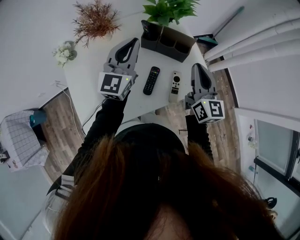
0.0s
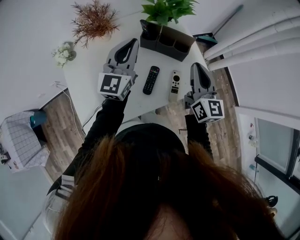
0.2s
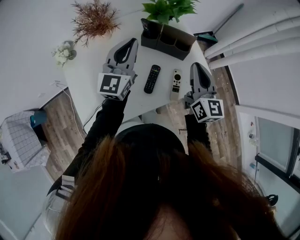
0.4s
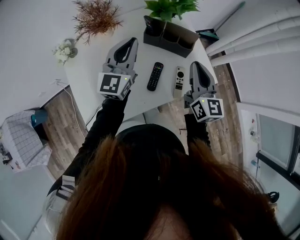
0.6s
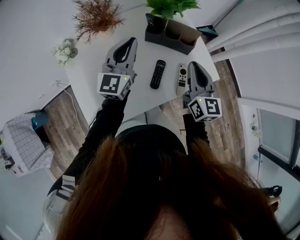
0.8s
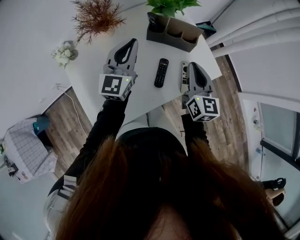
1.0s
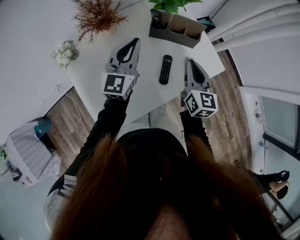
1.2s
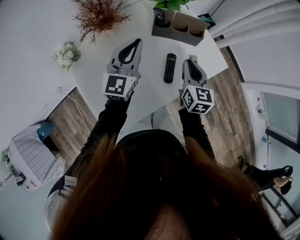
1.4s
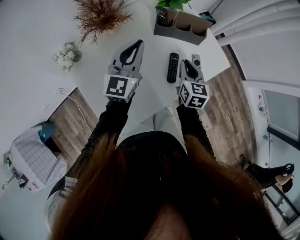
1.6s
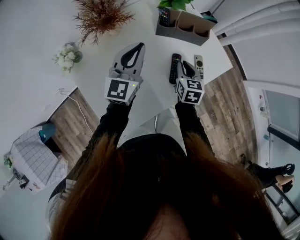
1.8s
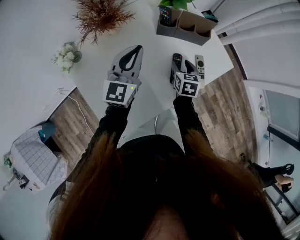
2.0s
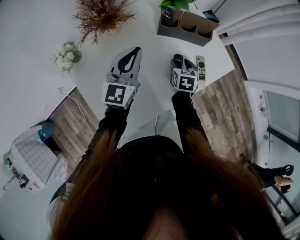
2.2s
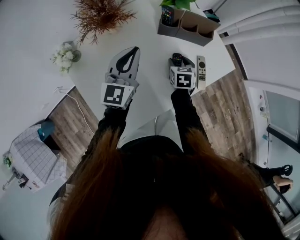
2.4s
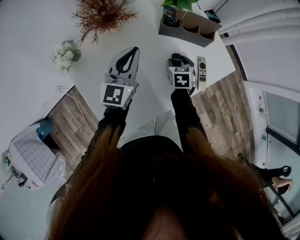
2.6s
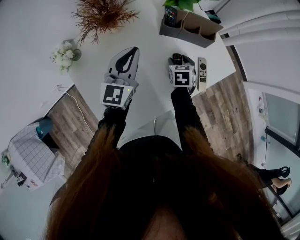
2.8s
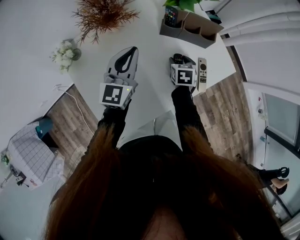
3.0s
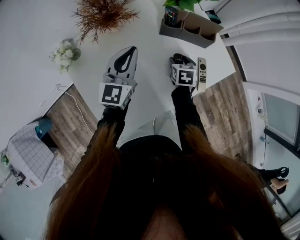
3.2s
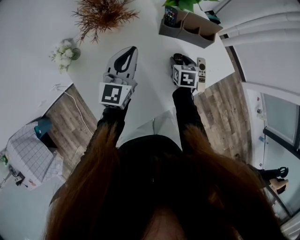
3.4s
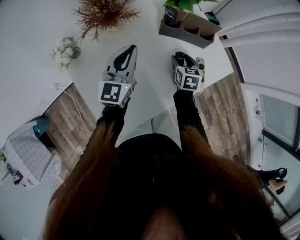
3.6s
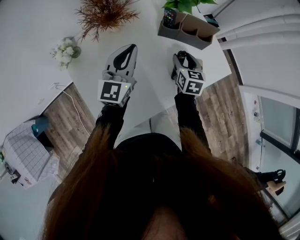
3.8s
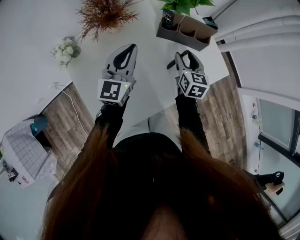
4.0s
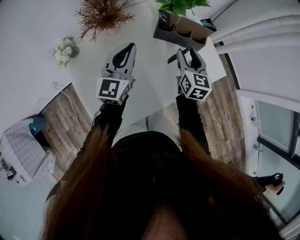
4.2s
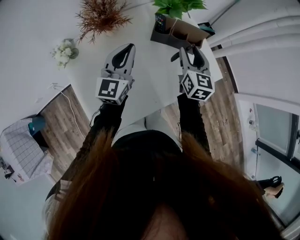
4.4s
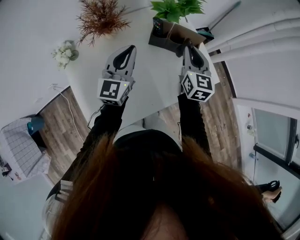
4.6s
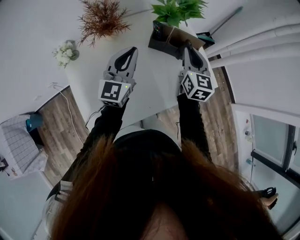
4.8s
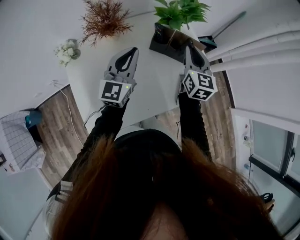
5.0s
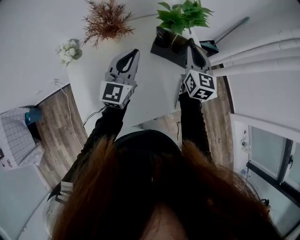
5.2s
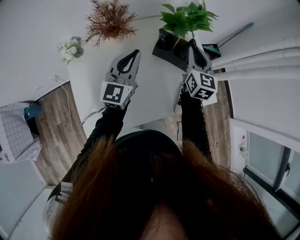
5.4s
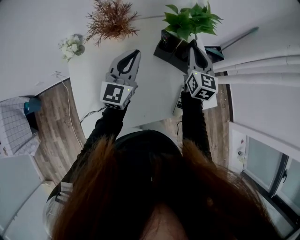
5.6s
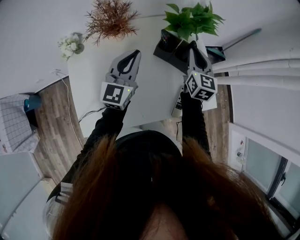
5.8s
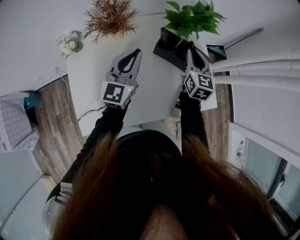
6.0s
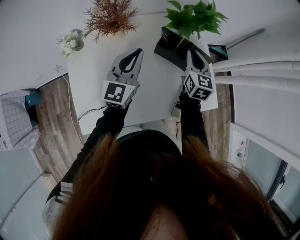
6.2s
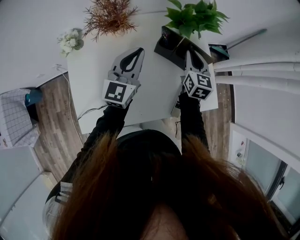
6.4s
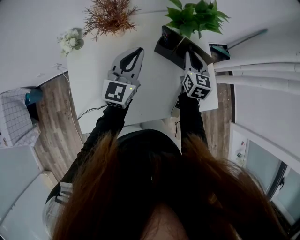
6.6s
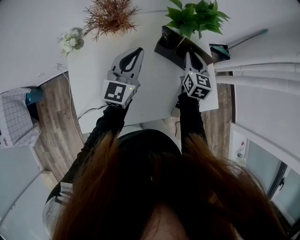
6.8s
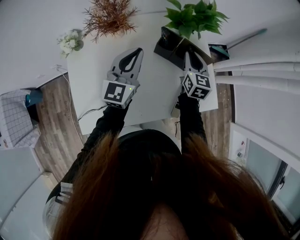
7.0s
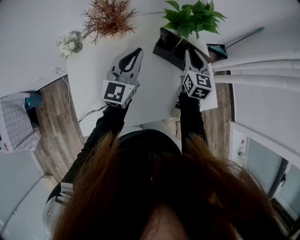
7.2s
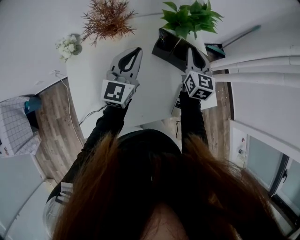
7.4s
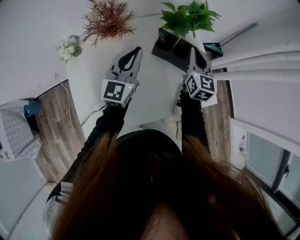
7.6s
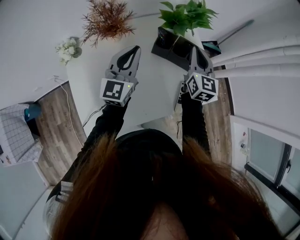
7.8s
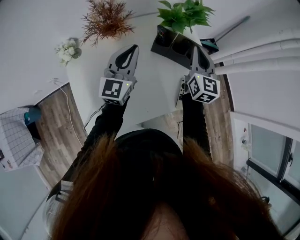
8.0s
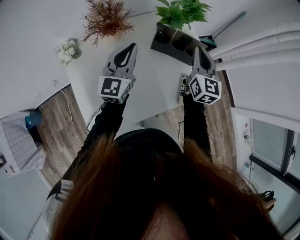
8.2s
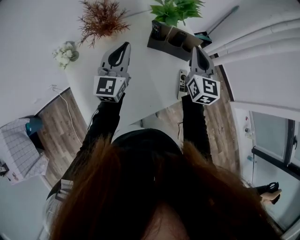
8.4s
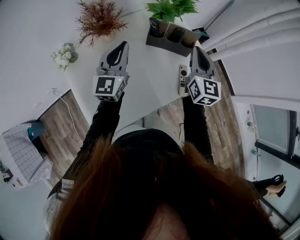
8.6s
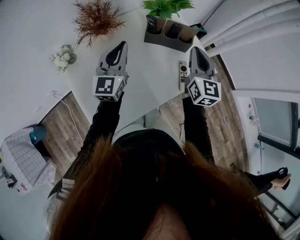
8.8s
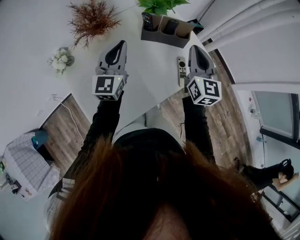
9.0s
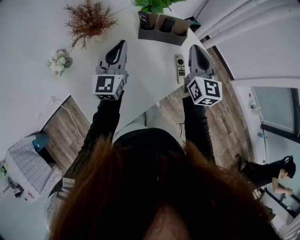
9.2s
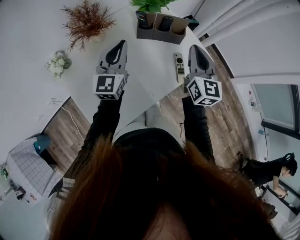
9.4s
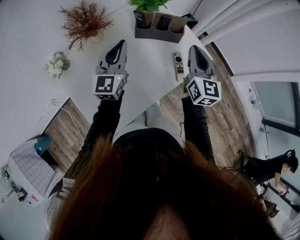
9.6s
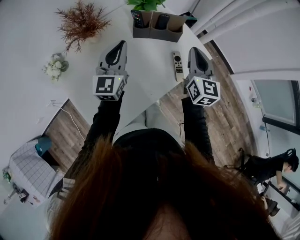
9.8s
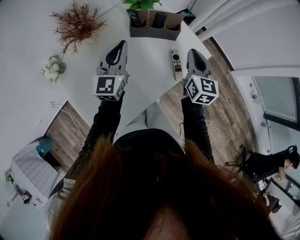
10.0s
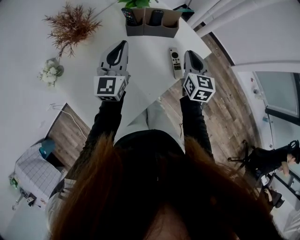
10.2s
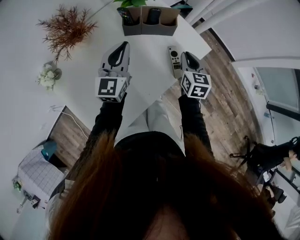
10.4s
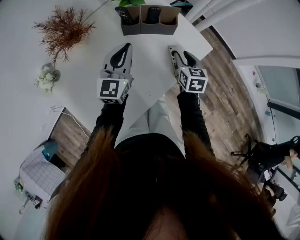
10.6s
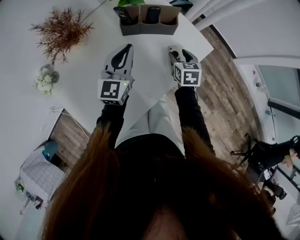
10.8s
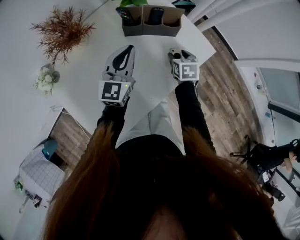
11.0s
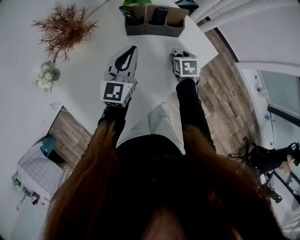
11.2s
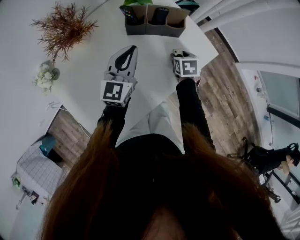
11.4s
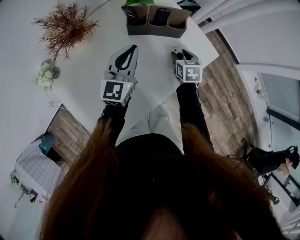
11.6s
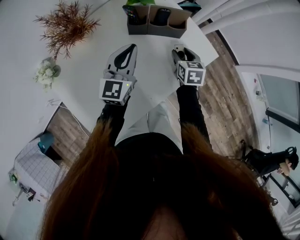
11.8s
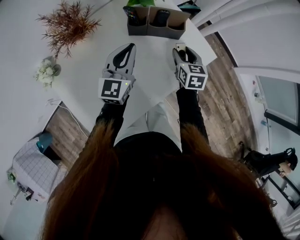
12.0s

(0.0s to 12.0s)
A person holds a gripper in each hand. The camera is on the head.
0.0s - 1.6s: The right gripper goes some 20 cm downward and to the left, and rotates approximately 30 degrees, while the left gripper goes approximately 5 cm to the left.
1.6s - 3.0s: The left gripper moves some 5 cm; the right gripper is displaced downward and forward by roughly 15 cm, rotates approximately 30 degrees, and opens.
3.0s - 4.4s: The left gripper shifts by approximately 5 cm, while the right gripper shifts roughly 20 cm upward, and tips its fingers upward by some 40 degrees.
4.4s - 6.0s: The right gripper heads forward, covering some 10 cm, and closes.
6.0s - 7.6s: The grippers stay close to where they were, moving slightly.
7.6s - 9.0s: The left gripper ends up approximately 5 cm from where it was, while the right gripper travels backward by some 15 cm.
9.0s - 10.4s: The left gripper travels to the right by some 5 cm; the right gripper goes about 15 cm downward, and swivels approximately 30 degrees.
10.4s - 12.0s: The right gripper moves forward, some 5 cm, reaches some 10 cm downward, then returns, and opens up.

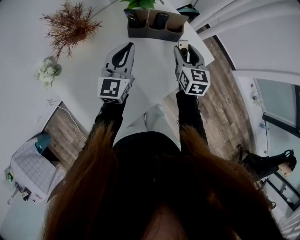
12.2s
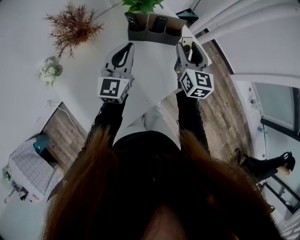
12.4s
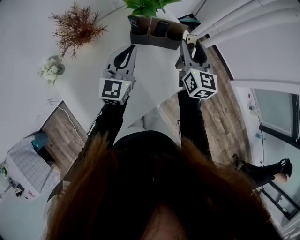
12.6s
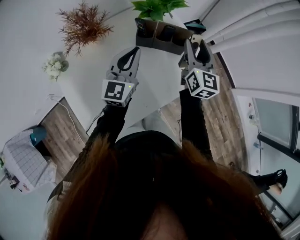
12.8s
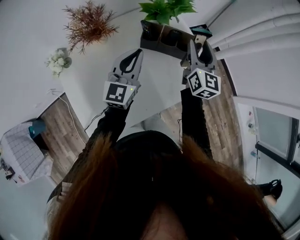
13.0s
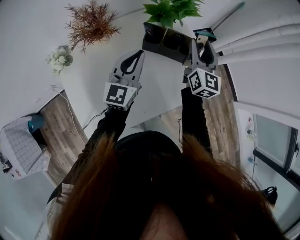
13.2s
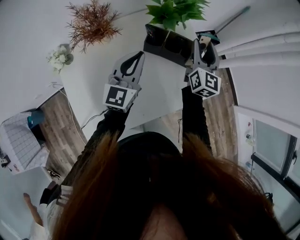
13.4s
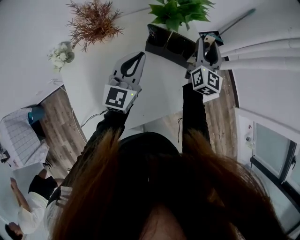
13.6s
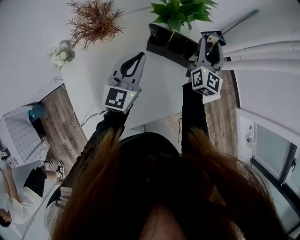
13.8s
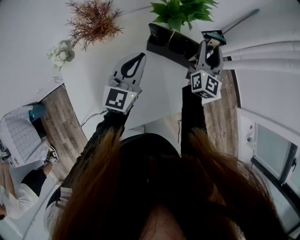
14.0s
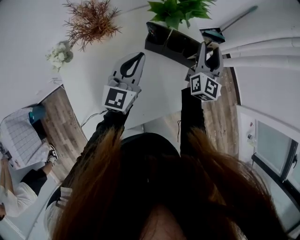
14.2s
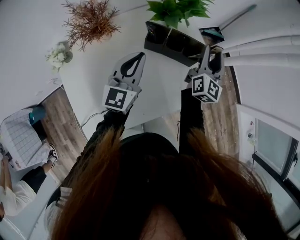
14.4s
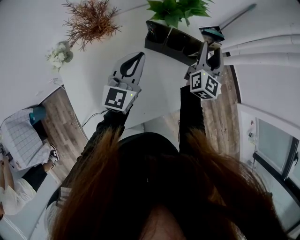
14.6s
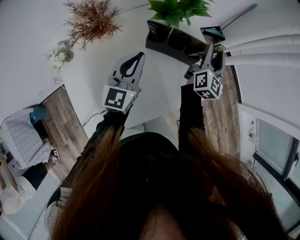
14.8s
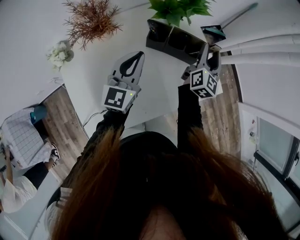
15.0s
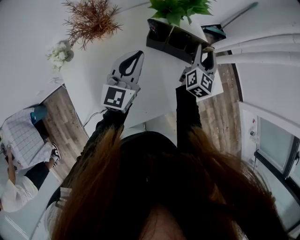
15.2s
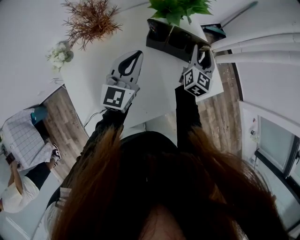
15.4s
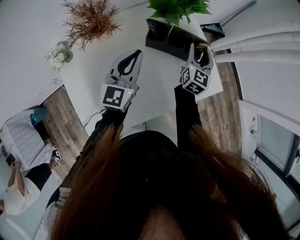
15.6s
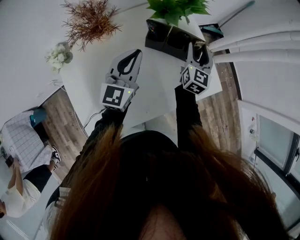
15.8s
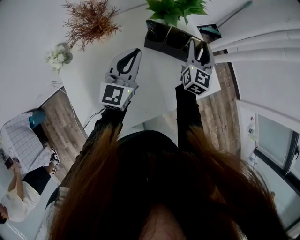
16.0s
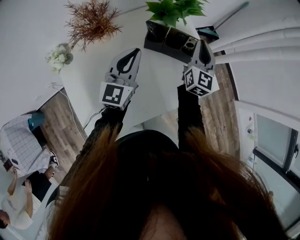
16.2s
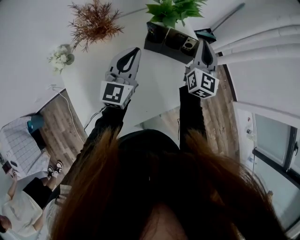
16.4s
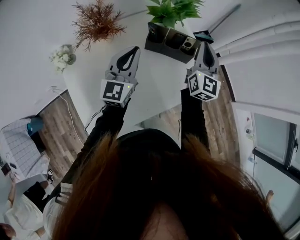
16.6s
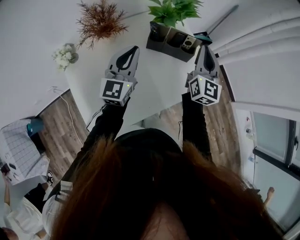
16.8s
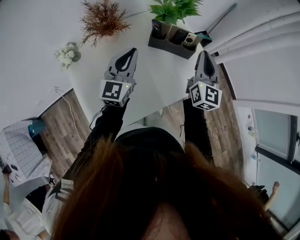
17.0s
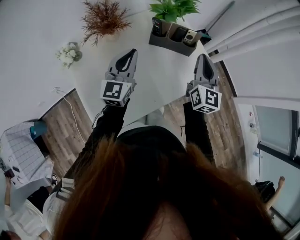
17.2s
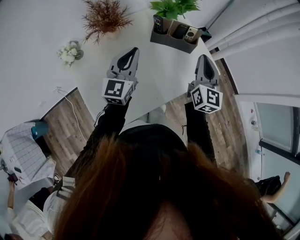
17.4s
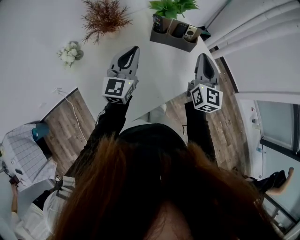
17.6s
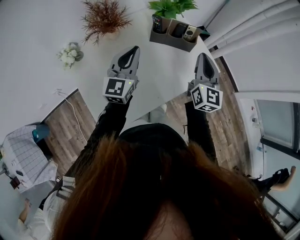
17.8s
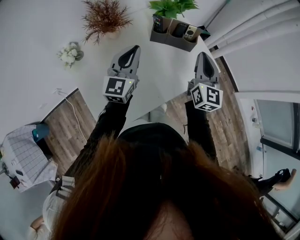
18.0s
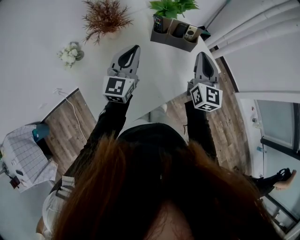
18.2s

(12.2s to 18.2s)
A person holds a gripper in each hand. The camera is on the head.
12.2s - 13.8s: The right gripper is displaced forward and upward by about 15 cm, and swivels roughly 30 degrees.
13.8s - 15.2s: The right gripper goes some 5 cm downward.
15.2s - 16.6s: The left gripper shifts by about 5 cm, while the right gripper moves upward and backward, about 15 cm, and closes up.
16.6s - 18.2s: The left gripper heads backward, covering approximately 5 cm. The right gripper moves backward, some 15 cm.

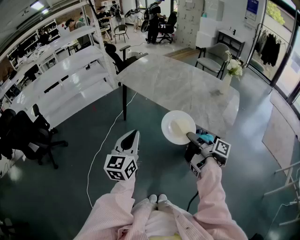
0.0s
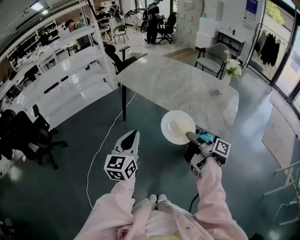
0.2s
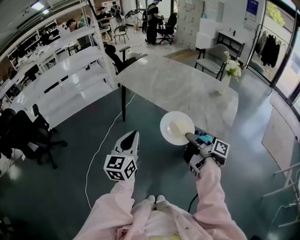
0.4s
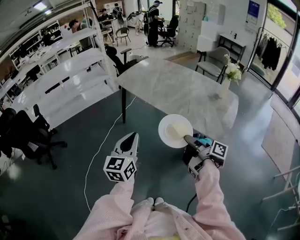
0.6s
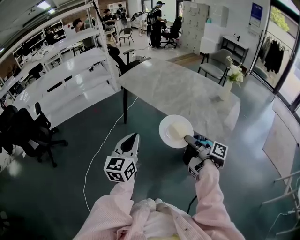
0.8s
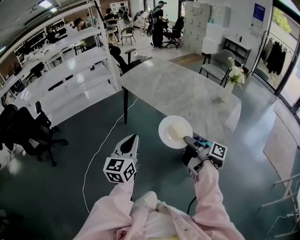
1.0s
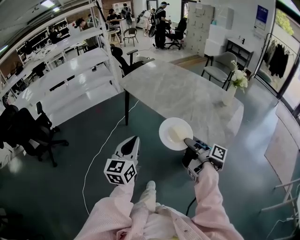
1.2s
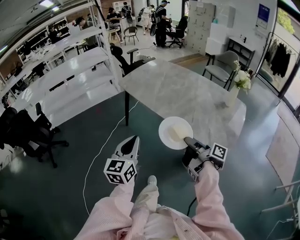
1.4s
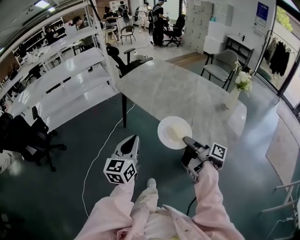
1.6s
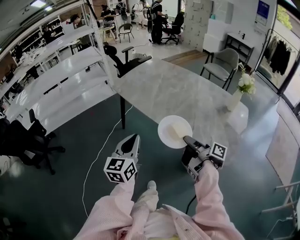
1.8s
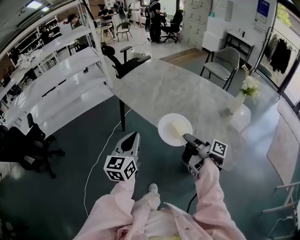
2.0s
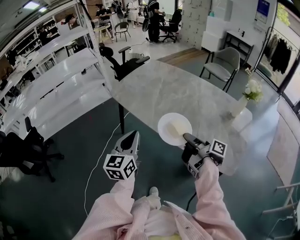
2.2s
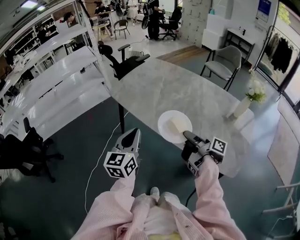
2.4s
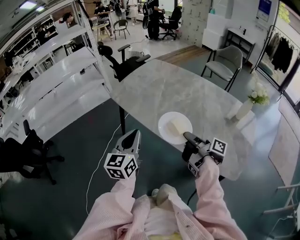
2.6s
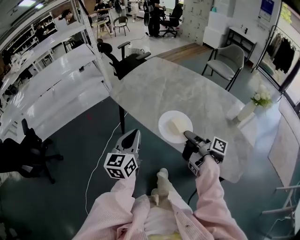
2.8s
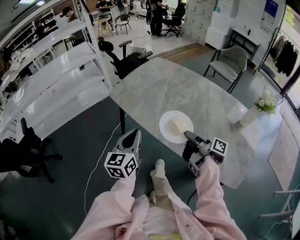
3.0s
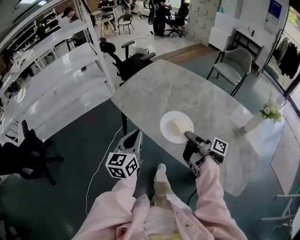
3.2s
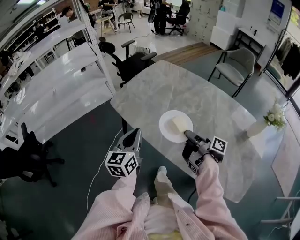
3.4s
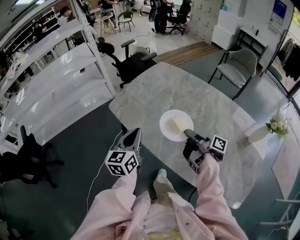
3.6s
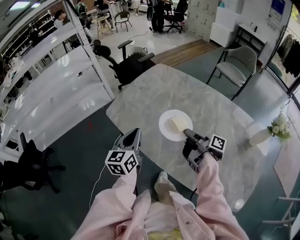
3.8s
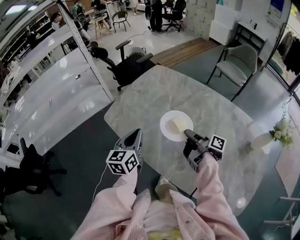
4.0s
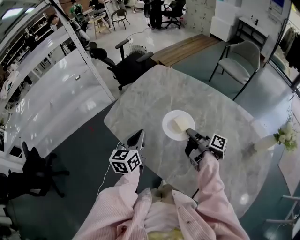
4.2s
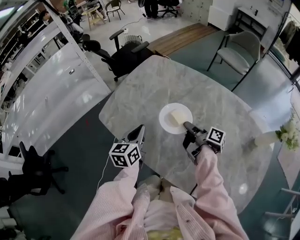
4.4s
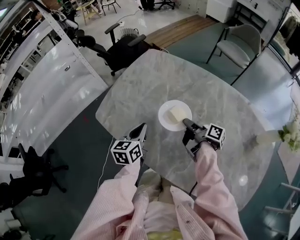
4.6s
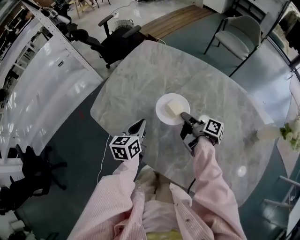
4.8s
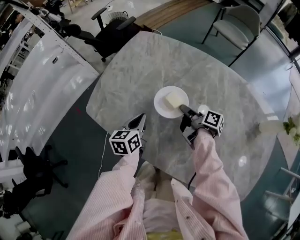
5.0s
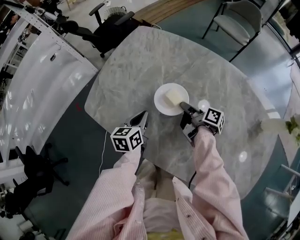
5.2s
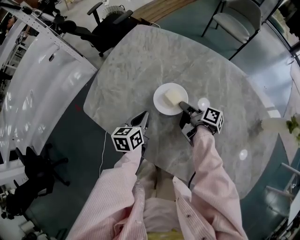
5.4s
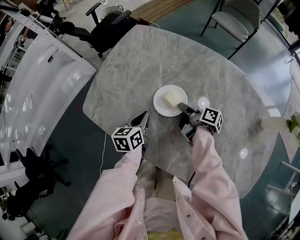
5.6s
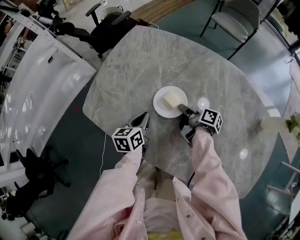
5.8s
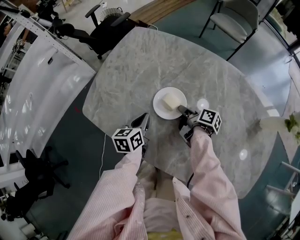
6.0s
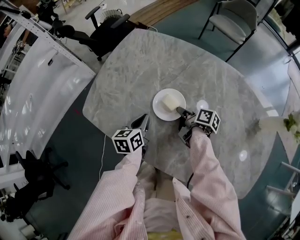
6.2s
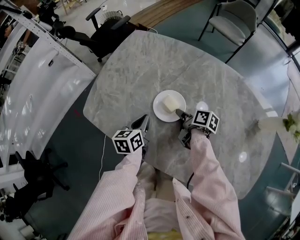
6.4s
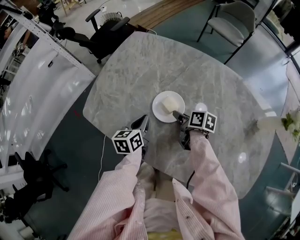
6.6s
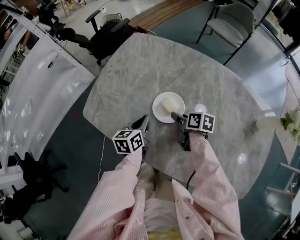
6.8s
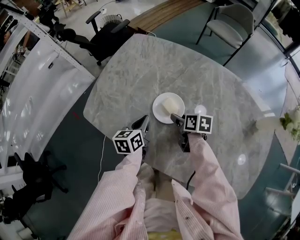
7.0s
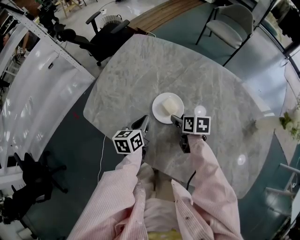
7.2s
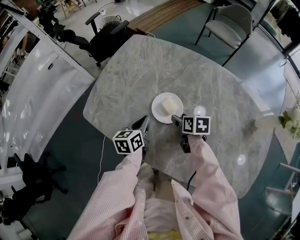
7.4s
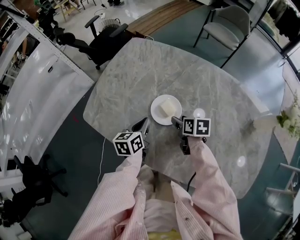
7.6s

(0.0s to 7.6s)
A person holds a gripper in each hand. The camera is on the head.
0.0s - 1.6s: The left gripper shifts by approximately 10 cm.
1.6s - 3.0s: The left gripper moves roughly 25 cm.
3.0s - 4.6s: The left gripper ends up approximately 35 cm from where it was, and changes its angle by approximately 20 degrees.
4.6s - 6.0s: The left gripper goes roughly 10 cm downward.
